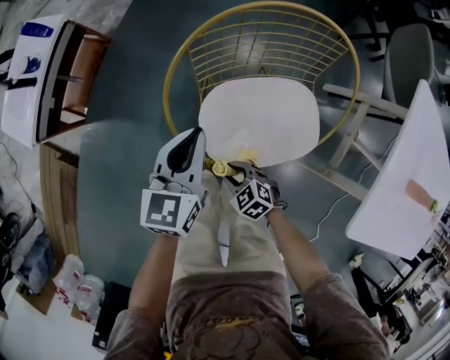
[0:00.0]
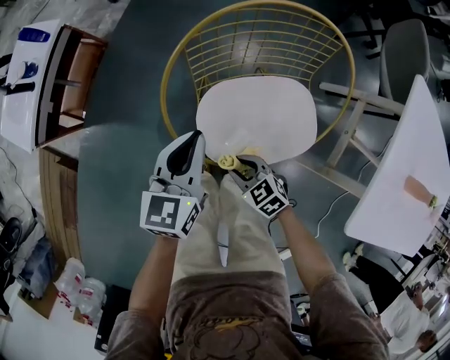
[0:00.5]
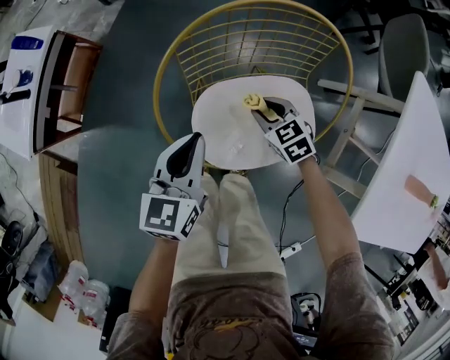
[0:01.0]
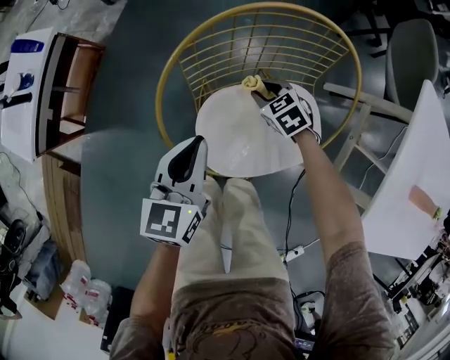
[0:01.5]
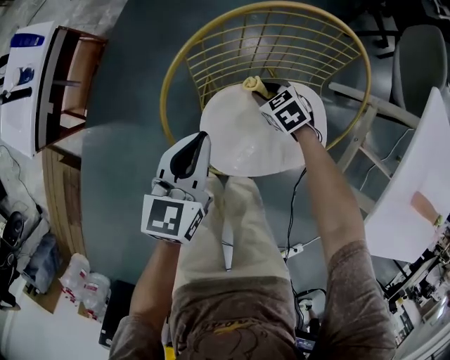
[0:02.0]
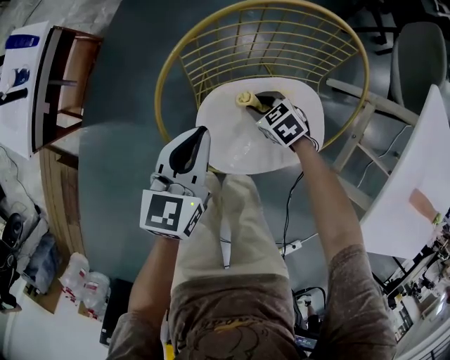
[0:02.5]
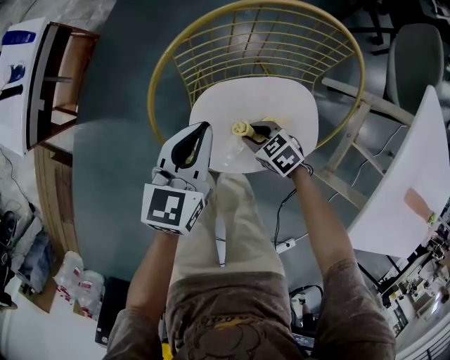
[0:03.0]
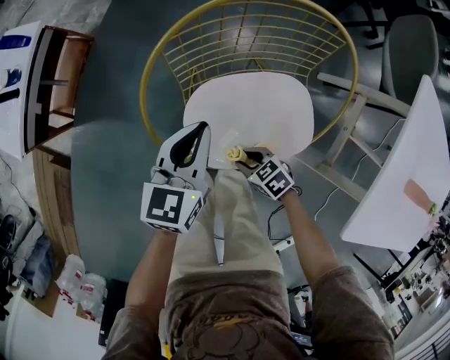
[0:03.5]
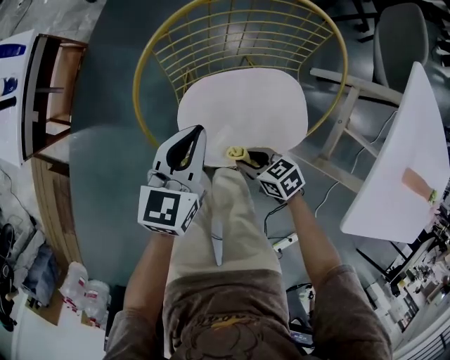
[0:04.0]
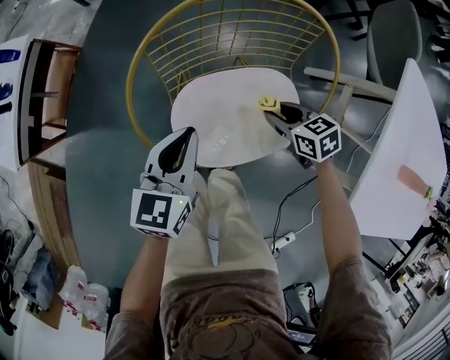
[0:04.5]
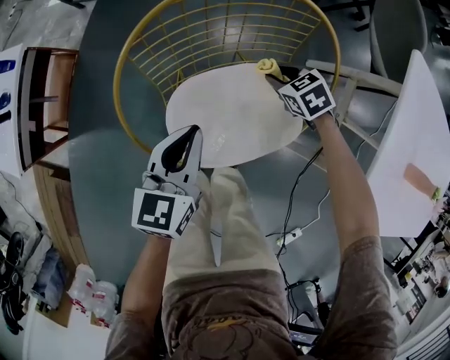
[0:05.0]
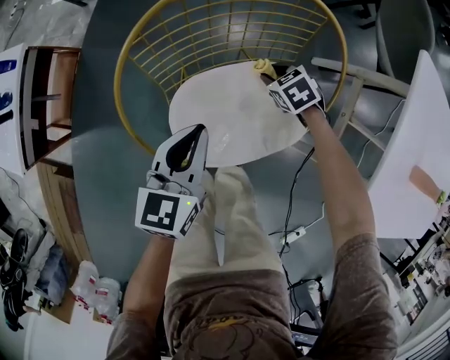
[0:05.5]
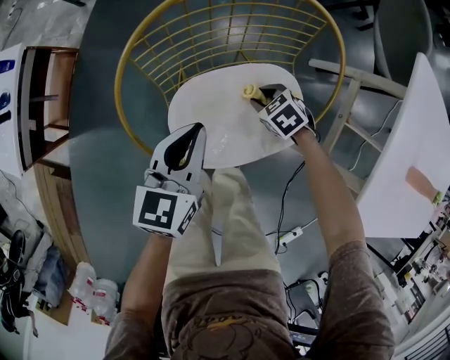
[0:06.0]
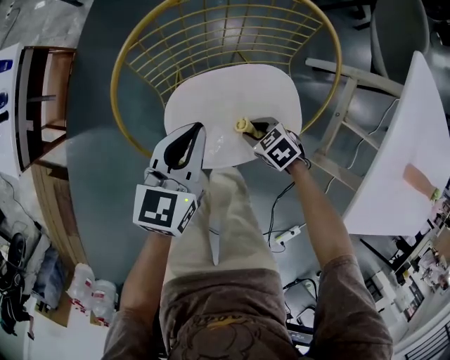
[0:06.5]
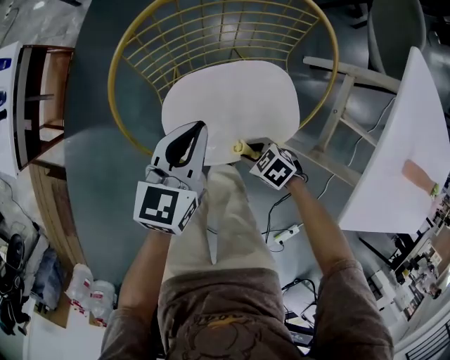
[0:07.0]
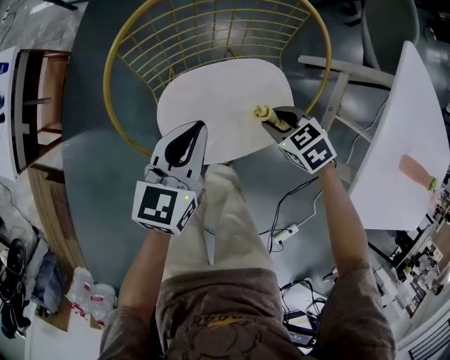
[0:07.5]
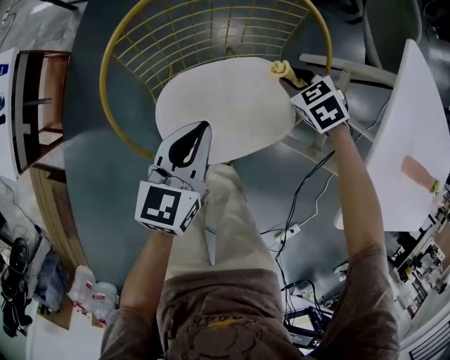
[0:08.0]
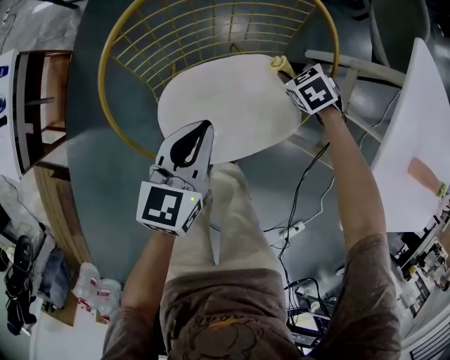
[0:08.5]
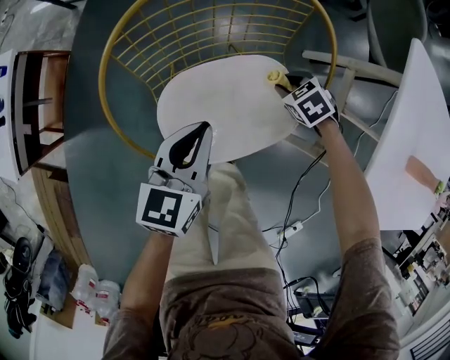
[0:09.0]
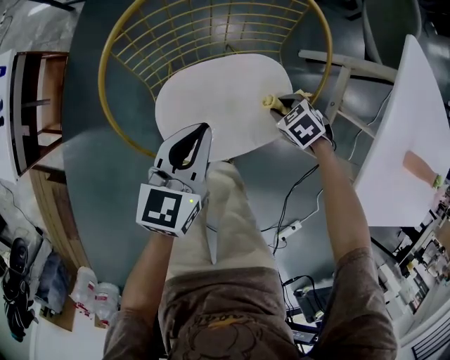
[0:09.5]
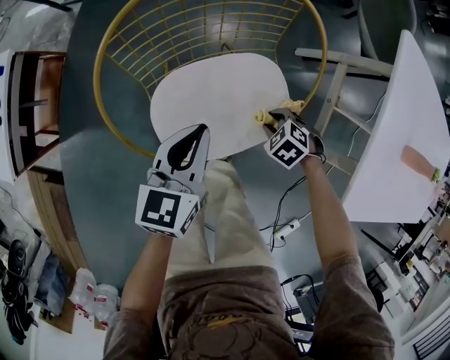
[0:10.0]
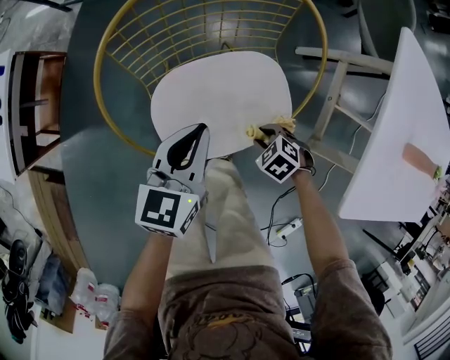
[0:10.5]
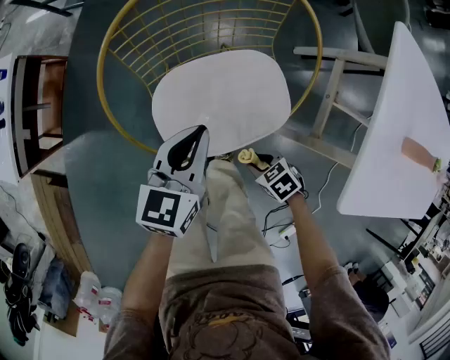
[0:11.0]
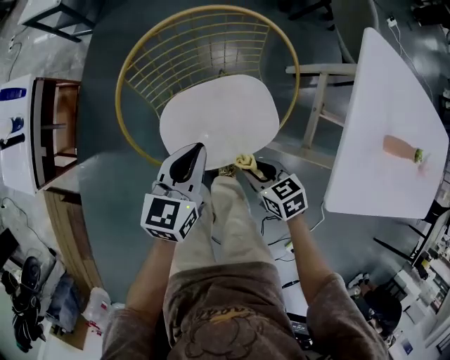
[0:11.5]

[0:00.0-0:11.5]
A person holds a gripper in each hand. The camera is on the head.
0:00.0 to 0:02.0: The right gripper shifts approximately 30 cm forward and to the right.
0:02.0 to 0:04.0: The right gripper moves backward, approximately 20 cm, and rotates approximately 30 degrees.
0:04.0 to 0:06.0: The right gripper goes approximately 20 cm forward and to the right, and changes its angle by some 30 degrees.
0:06.0 to 0:07.5: The right gripper moves upward, approximately 10 cm.
0:07.5 to 0:09.5: The right gripper moves downward, some 5 cm.
0:09.5 to 0:11.5: The right gripper changes place by some 20 cm, and rotates approximately 40 degrees; the left gripper heads upward, covering about 5 cm.

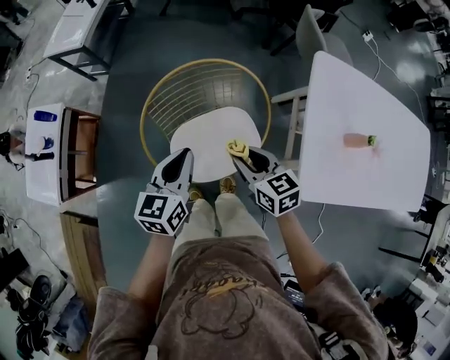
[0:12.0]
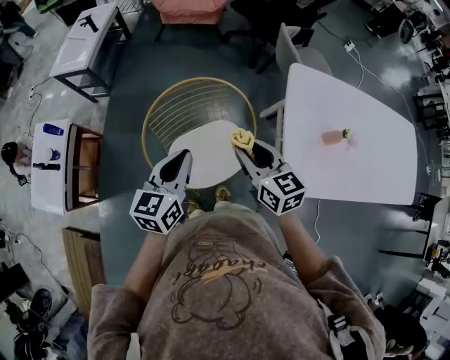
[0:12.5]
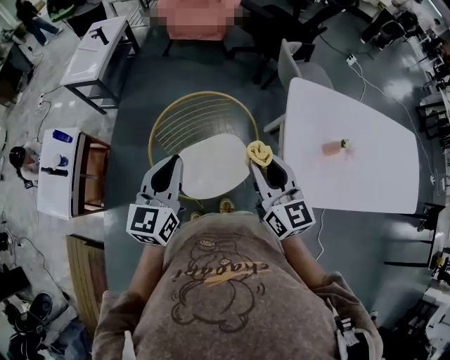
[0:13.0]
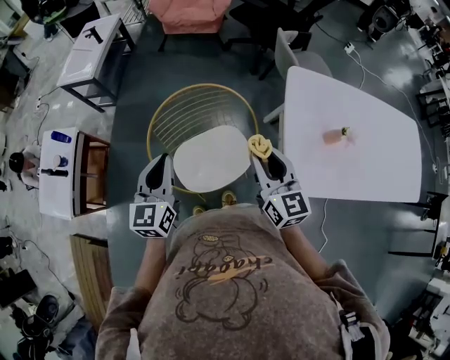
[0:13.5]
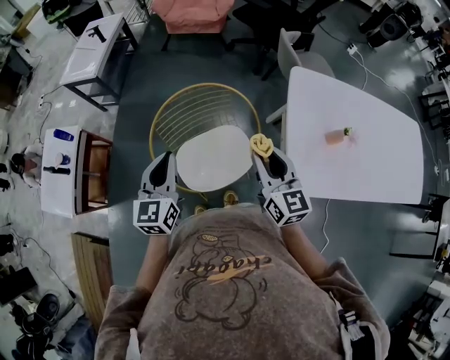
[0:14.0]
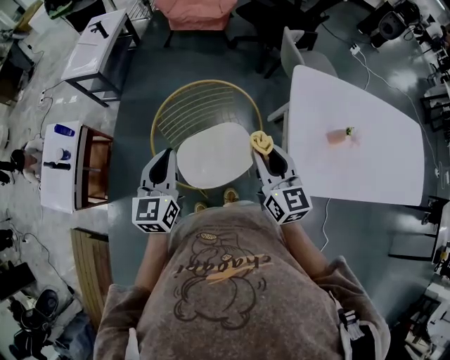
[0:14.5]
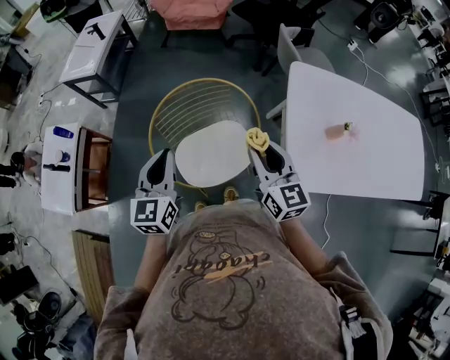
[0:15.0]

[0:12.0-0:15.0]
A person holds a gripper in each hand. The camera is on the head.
0:12.0 to 0:13.5: The right gripper is displaced upward by approximately 20 cm, and turns by roughly 30 degrees; the left gripper travels upward by approximately 10 cm.
0:13.5 to 0:15.0: Neither gripper changes place.

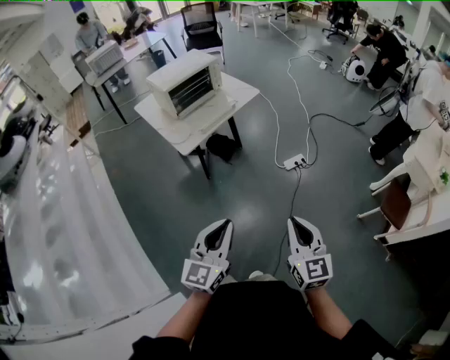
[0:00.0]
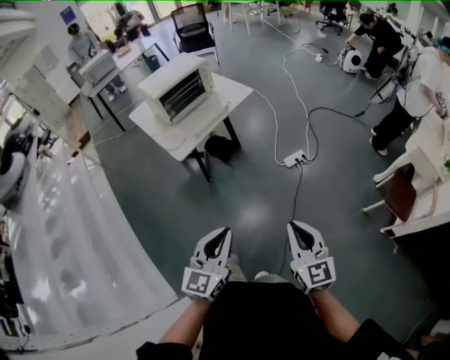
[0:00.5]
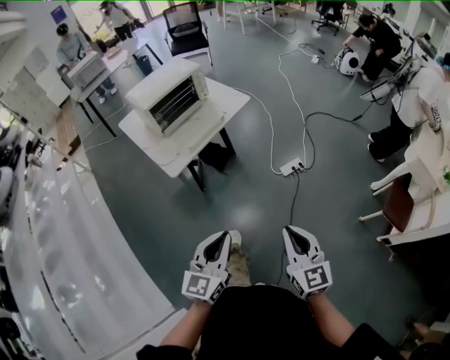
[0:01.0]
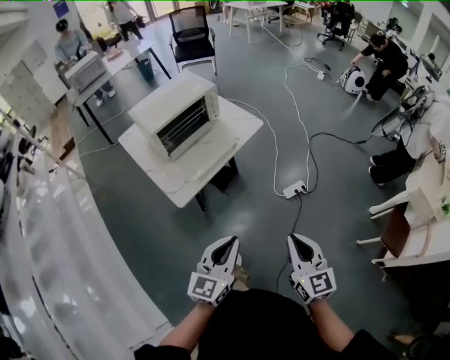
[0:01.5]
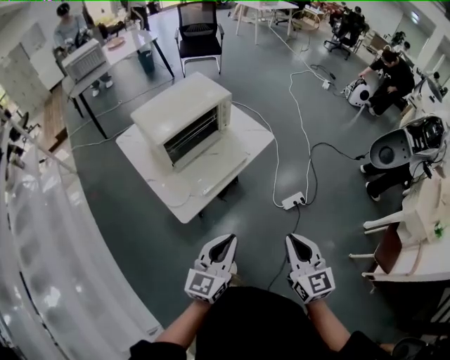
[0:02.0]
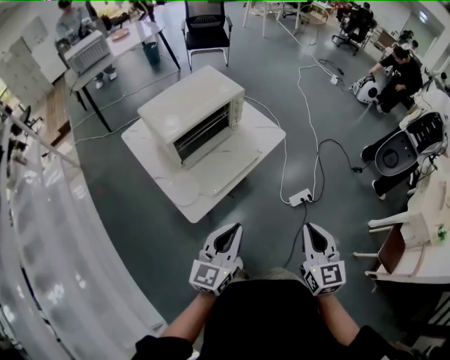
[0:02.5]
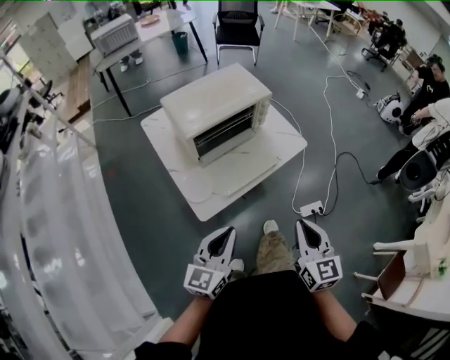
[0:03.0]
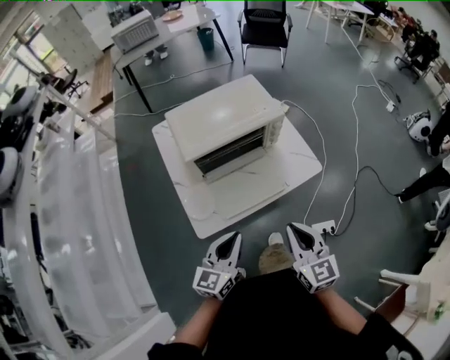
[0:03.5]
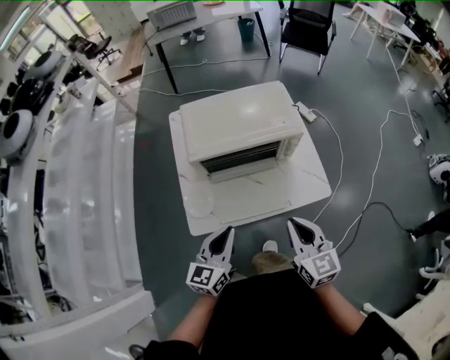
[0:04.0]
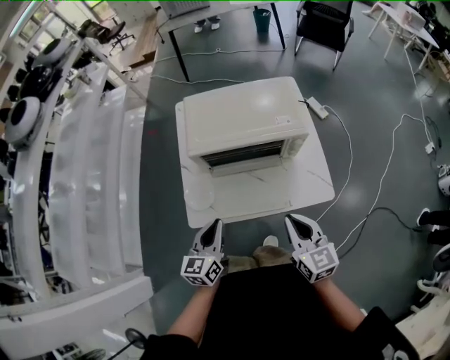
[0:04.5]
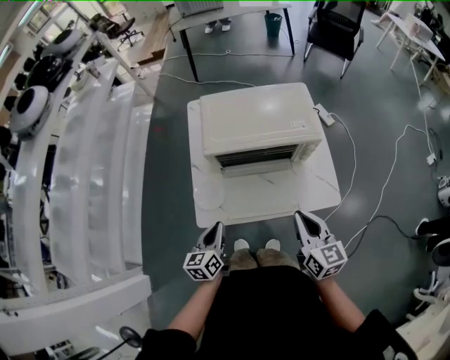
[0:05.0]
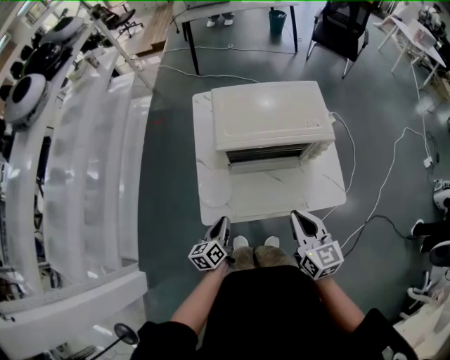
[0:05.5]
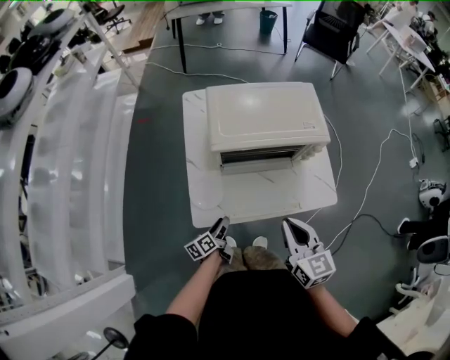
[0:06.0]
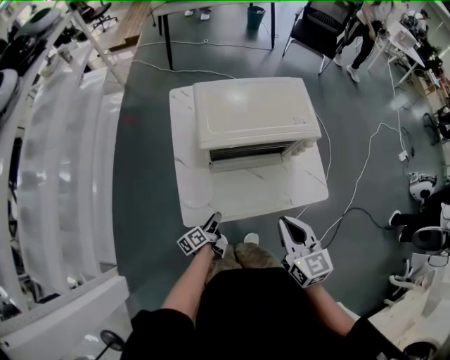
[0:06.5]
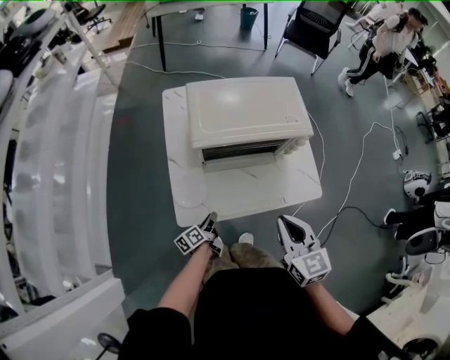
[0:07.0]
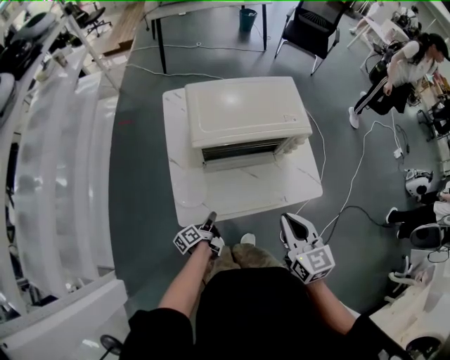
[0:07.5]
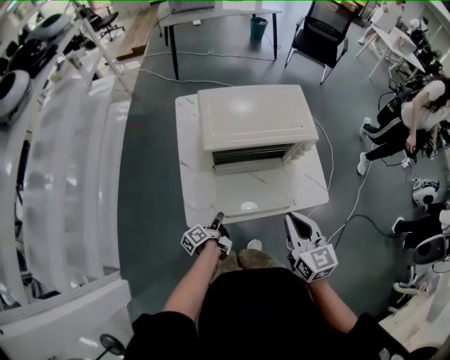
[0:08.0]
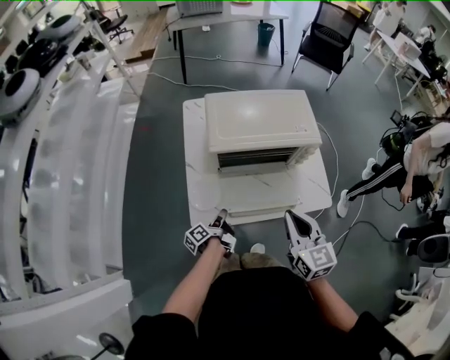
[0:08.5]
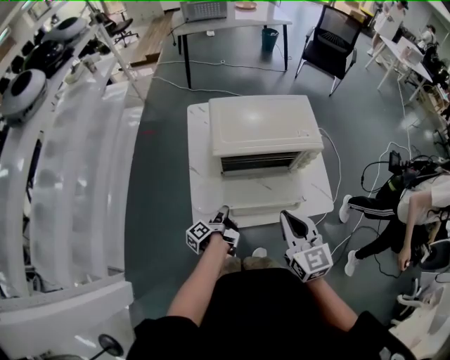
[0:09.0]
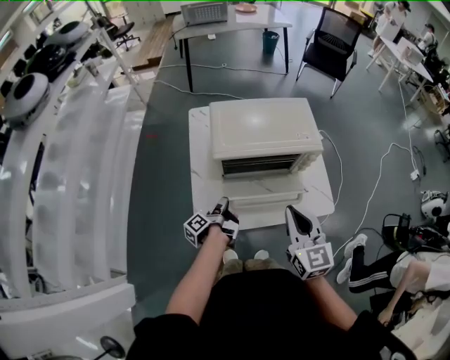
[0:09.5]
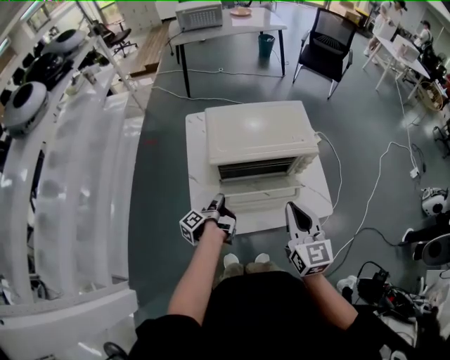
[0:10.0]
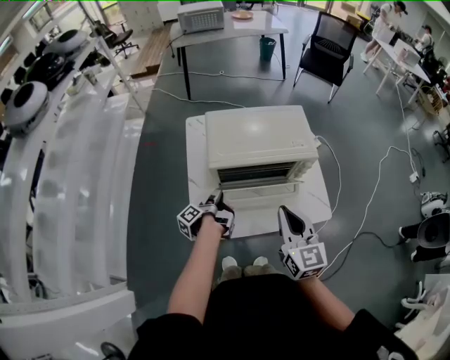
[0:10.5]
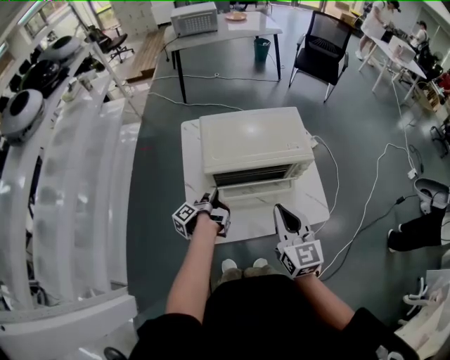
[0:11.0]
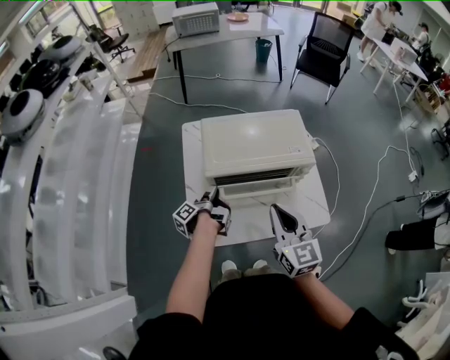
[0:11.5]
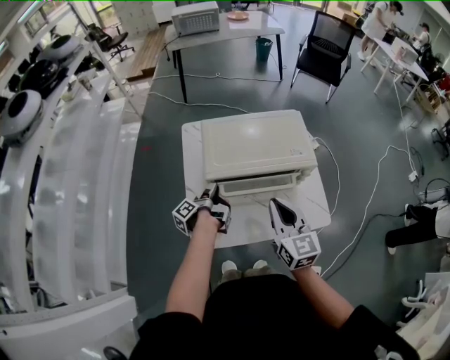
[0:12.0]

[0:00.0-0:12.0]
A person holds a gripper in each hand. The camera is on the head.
0:00.0 to 0:02.0: The two grippers travel together, forward, roughly 50 cm.
0:02.0 to 0:04.0: The left gripper shifts by roughly 30 cm, and rotates some 40 degrees. Meanwhile the right gripper changes place by roughly 40 cm, and rotates roughly 40 degrees.
0:04.0 to 0:06.0: The right gripper heads to the left, covering some 10 cm. The left gripper moves downward and to the left, about 30 cm, rotates around the line of its fingers by approximately 50 degrees, counterclockwise from behind, and opens up.
0:06.0 to 0:08.0: The left gripper turns by about 20 degrees, and closes up.
0:08.0 to 0:10.0: The left gripper is displaced upward and forward by approximately 15 cm, and rotates some 20 degrees. The right gripper moves upward, some 5 cm.
0:10.0 to 0:12.0: The two grippers go roughly 10 cm forward.
